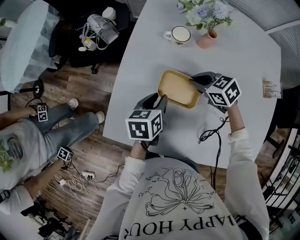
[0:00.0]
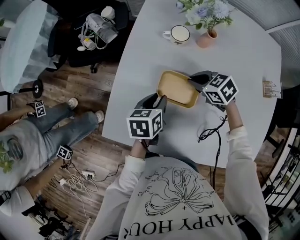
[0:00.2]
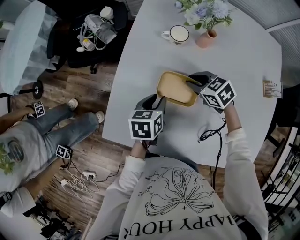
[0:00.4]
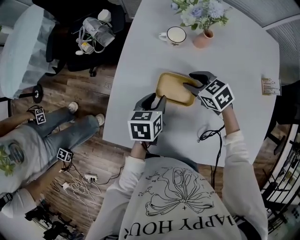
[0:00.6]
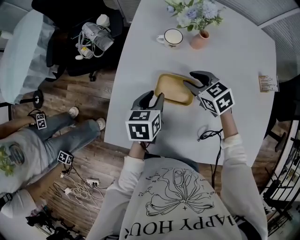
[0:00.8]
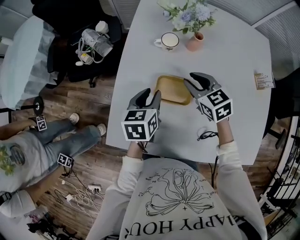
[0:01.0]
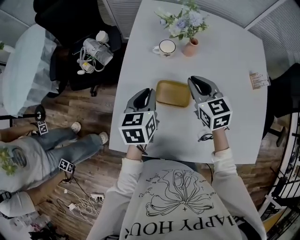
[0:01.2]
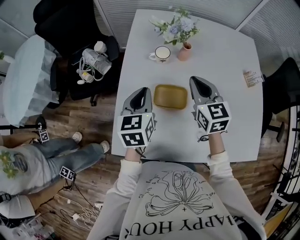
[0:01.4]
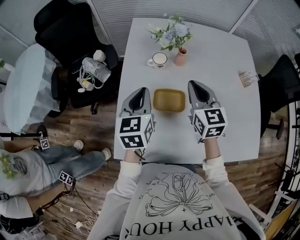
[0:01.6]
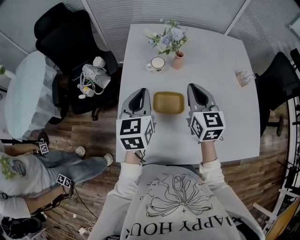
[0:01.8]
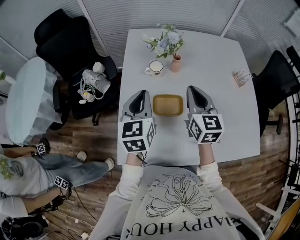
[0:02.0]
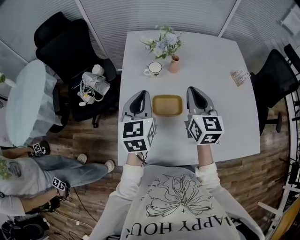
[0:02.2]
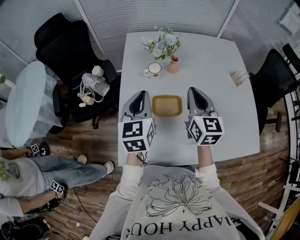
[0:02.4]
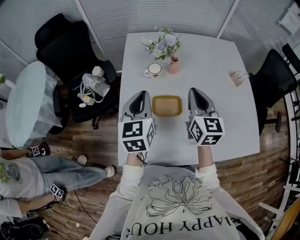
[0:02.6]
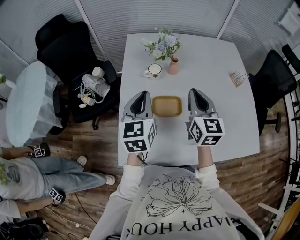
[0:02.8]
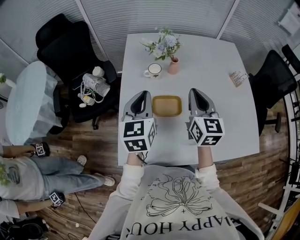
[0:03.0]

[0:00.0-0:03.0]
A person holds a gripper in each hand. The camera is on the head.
0.0 to 1.6 s: The grippers both shift upward by some 20 cm. The left gripper swivels approximately 30 degrees, and closes, while the right gripper tips its fingers upward by roughly 30 degrees, and opens, then closes again.
1.6 to 3.0 s: The left gripper travels upward by about 5 cm. Meanwhile the right gripper changes place by roughly 5 cm.

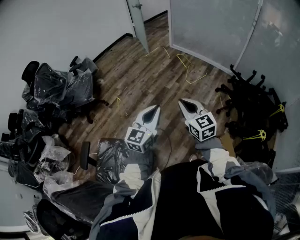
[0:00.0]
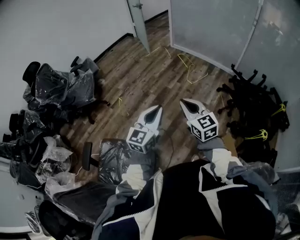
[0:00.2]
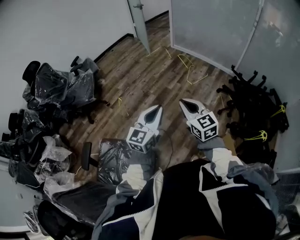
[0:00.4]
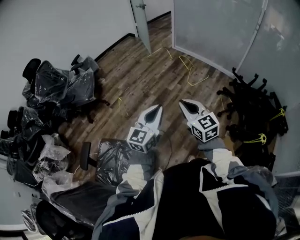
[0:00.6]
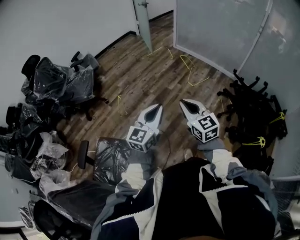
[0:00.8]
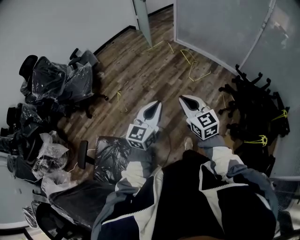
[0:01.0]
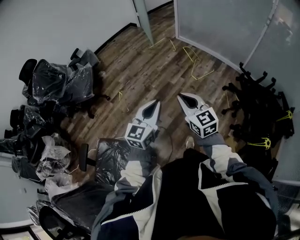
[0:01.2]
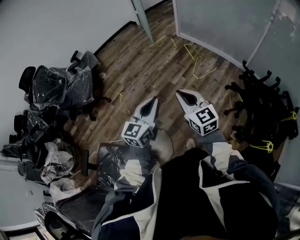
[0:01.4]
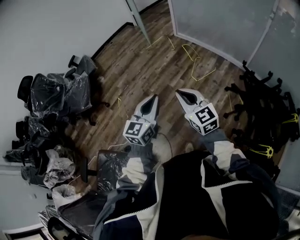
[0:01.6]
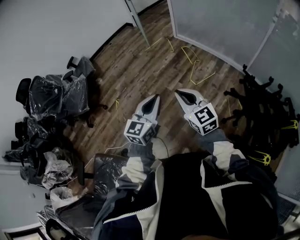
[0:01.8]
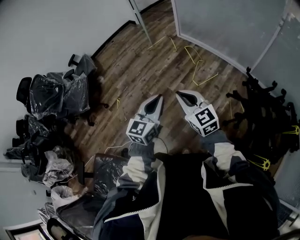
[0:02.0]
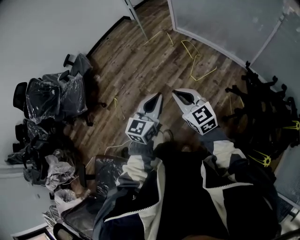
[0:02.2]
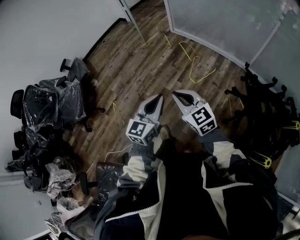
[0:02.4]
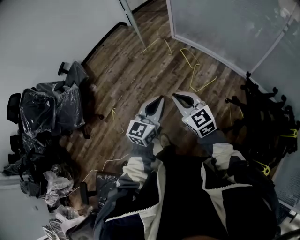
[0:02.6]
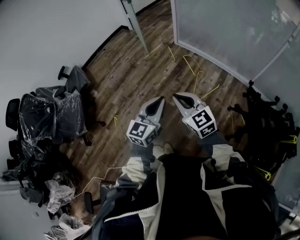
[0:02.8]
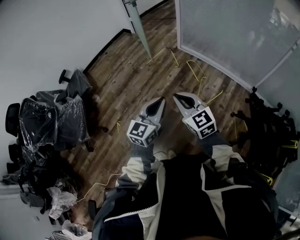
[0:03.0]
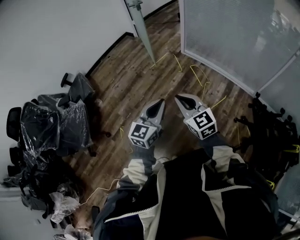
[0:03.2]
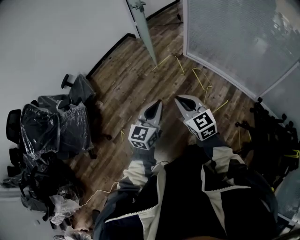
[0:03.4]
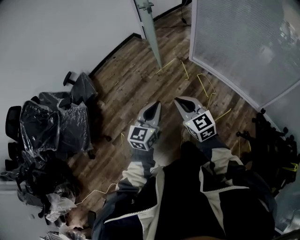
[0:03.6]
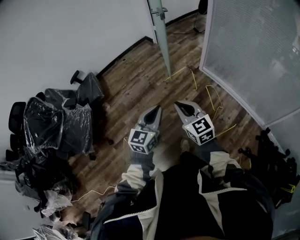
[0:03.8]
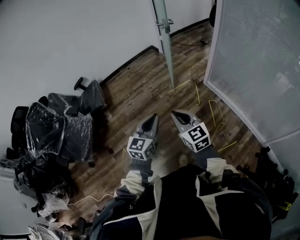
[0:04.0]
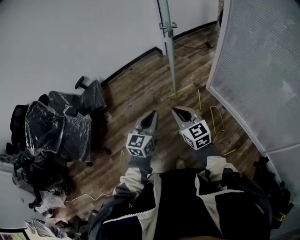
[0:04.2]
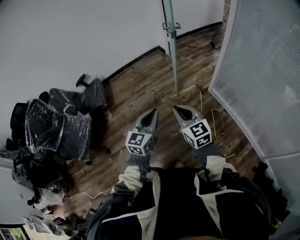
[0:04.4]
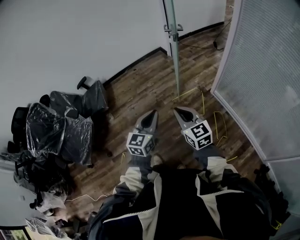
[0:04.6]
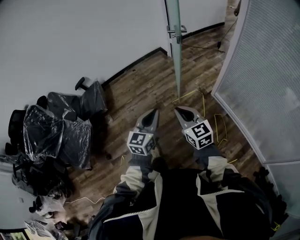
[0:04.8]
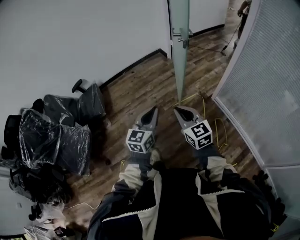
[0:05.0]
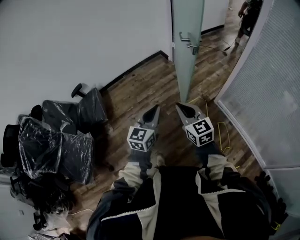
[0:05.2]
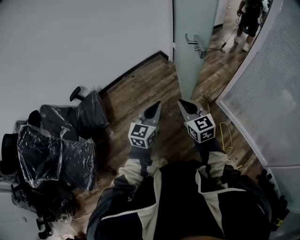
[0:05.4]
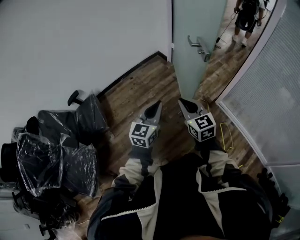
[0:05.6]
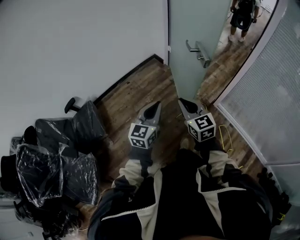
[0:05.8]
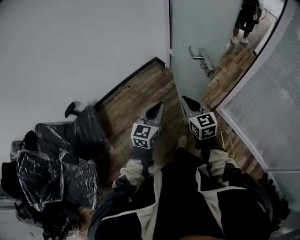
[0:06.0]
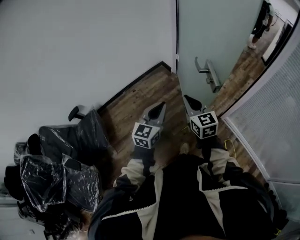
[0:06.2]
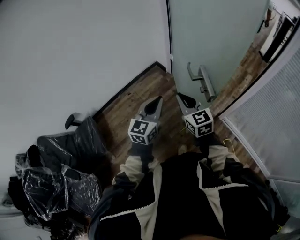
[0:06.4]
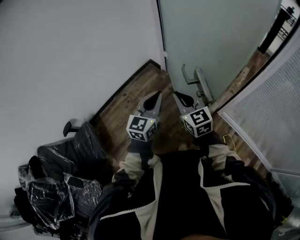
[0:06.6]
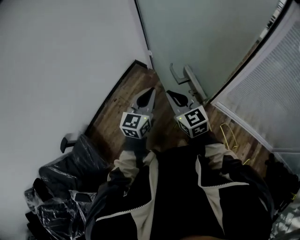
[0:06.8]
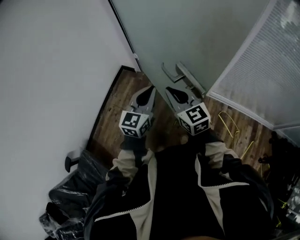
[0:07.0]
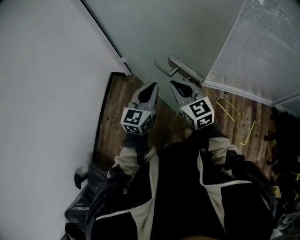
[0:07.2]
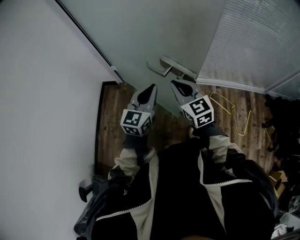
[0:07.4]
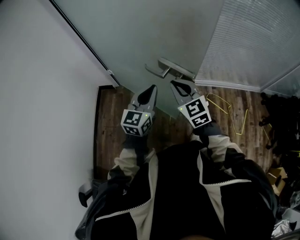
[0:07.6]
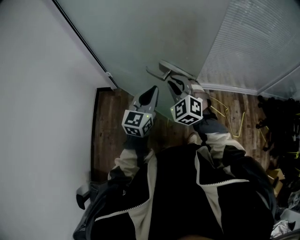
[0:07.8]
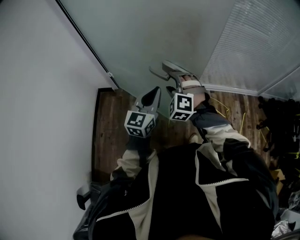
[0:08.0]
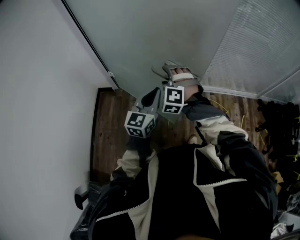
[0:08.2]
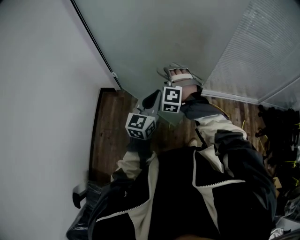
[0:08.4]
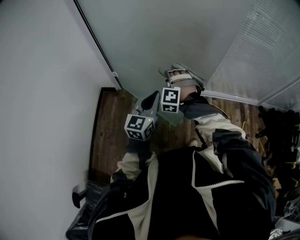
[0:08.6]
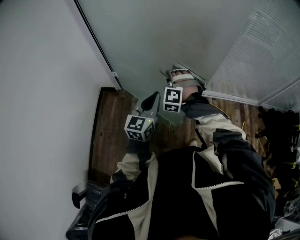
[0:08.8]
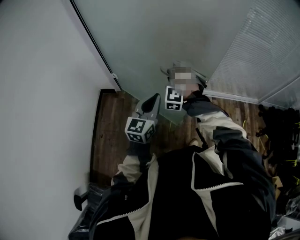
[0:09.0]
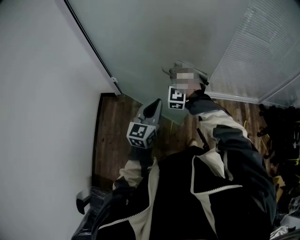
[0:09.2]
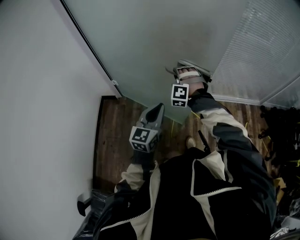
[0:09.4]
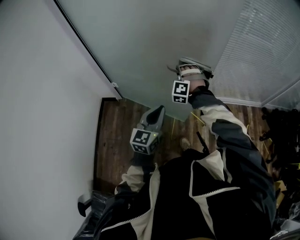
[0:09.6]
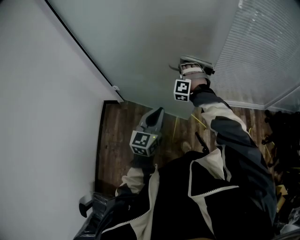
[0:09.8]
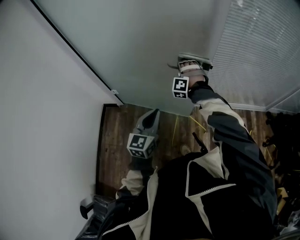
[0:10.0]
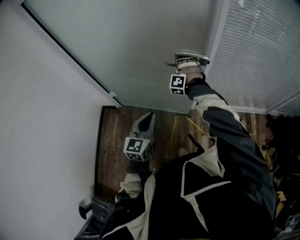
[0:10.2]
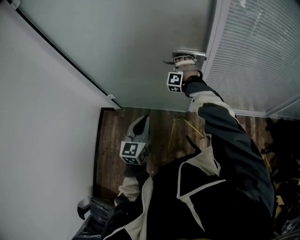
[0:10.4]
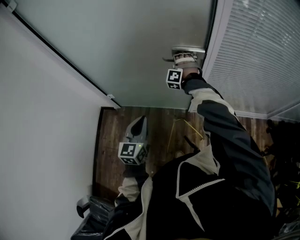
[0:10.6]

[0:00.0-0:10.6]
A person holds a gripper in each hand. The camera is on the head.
0.0 to 1.6 s: The left gripper goes approximately 25 cm forward and to the right, while the right gripper heads forward, covering approximately 25 cm.
1.6 to 3.0 s: Both grippers move forward, roughly 35 cm.
3.0 to 4.6 s: The pair of grippers is taken forward, approximately 40 cm. The left gripper changes its angle by about 30 degrees.
4.6 to 6.0 s: Both grippers are carried forward, some 40 cm.
6.0 to 7.6 s: The right gripper changes place by approximately 20 cm, and turns by approximately 40 degrees, while the left gripper shifts by roughly 25 cm, and changes its angle by roughly 50 degrees.
7.6 to 9.0 s: The right gripper travels forward, to the left and downward by about 15 cm, twists roughly 70 degrees counterclockwise, seen from behind, and opens up.
9.0 to 10.6 s: The right gripper shifts roughly 40 cm forward, while the left gripper goes some 20 cm forward.

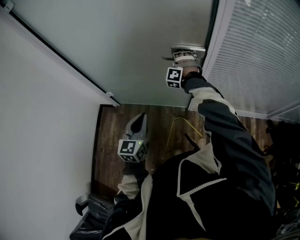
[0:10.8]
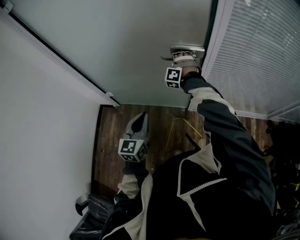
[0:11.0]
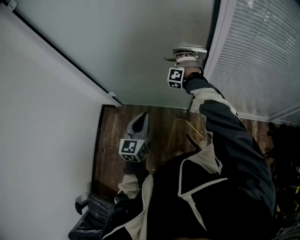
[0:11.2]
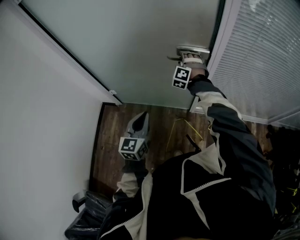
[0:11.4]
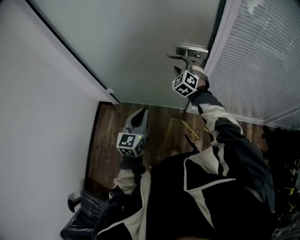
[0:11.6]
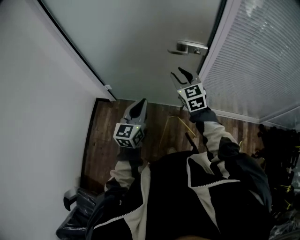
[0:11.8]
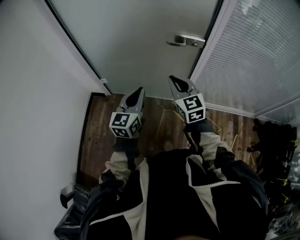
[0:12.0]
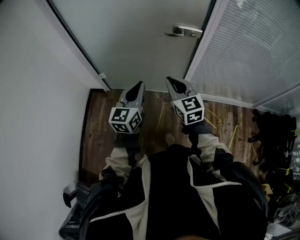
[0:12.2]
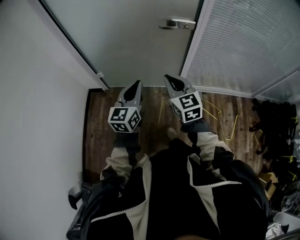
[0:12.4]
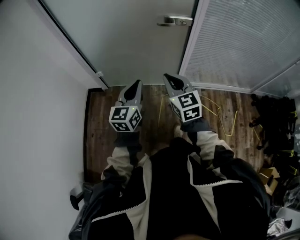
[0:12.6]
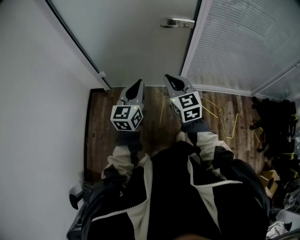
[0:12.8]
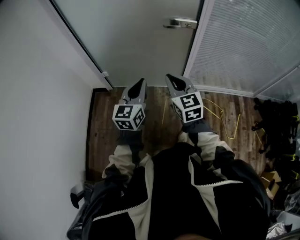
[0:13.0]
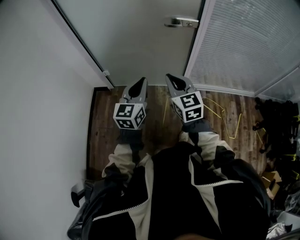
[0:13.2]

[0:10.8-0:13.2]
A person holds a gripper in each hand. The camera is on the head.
10.8 to 12.0 s: The left gripper moves some 5 cm, while the right gripper travels backward by some 30 cm, rolls clockwise, seen from behind, by roughly 80 degrees, and opens, then closes once more.
12.0 to 13.2 s: The grippers both shift backward by approximately 10 cm.

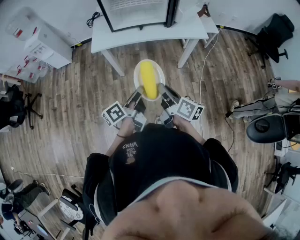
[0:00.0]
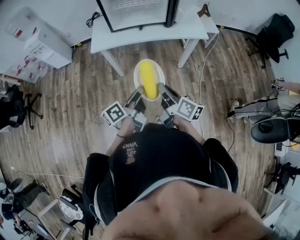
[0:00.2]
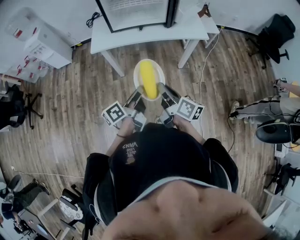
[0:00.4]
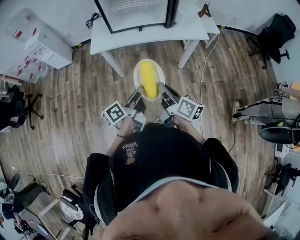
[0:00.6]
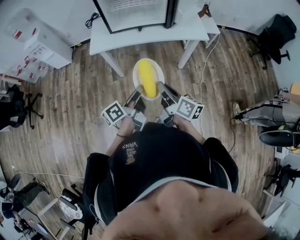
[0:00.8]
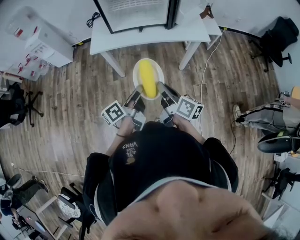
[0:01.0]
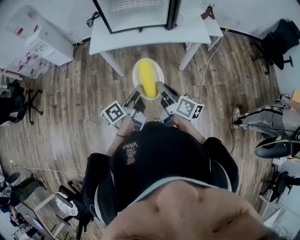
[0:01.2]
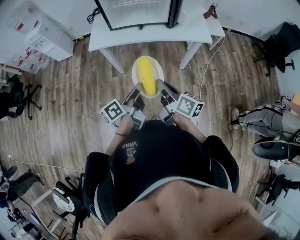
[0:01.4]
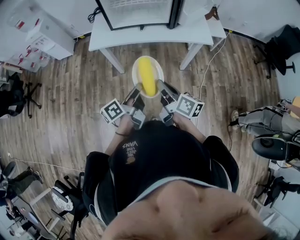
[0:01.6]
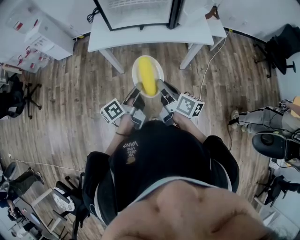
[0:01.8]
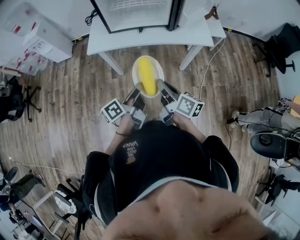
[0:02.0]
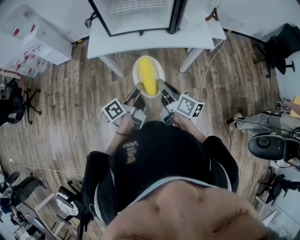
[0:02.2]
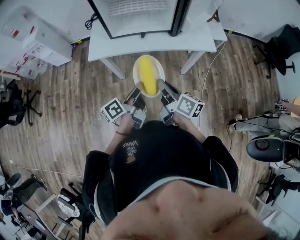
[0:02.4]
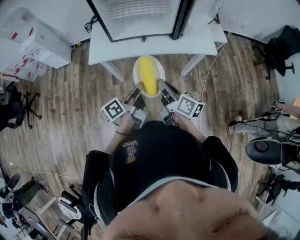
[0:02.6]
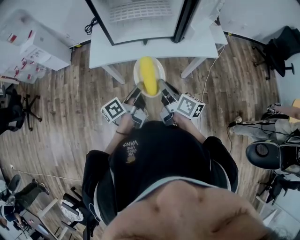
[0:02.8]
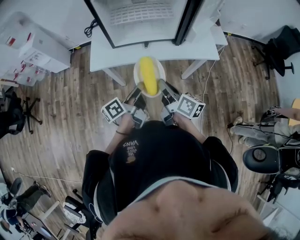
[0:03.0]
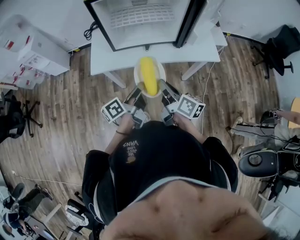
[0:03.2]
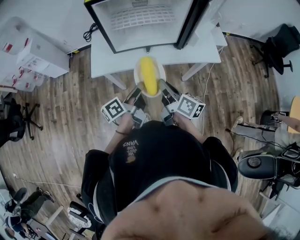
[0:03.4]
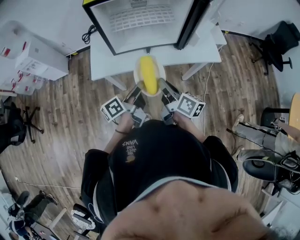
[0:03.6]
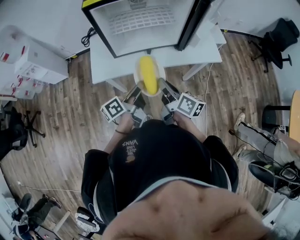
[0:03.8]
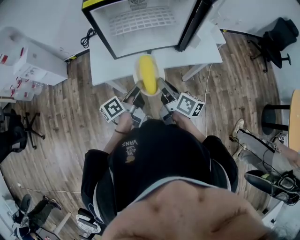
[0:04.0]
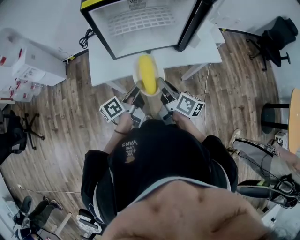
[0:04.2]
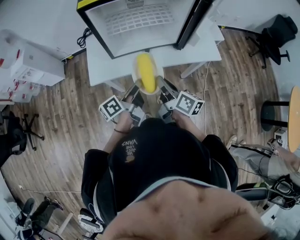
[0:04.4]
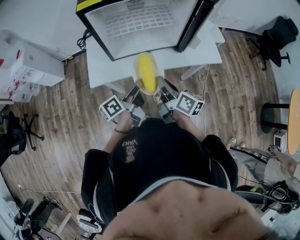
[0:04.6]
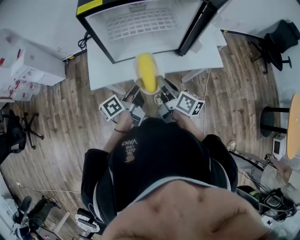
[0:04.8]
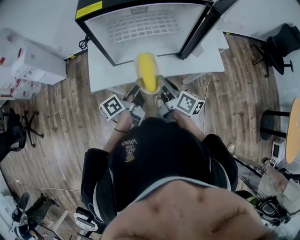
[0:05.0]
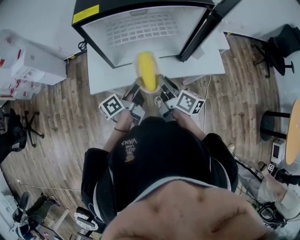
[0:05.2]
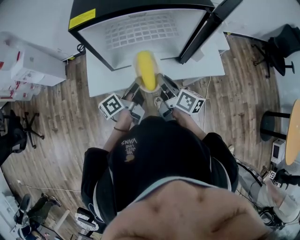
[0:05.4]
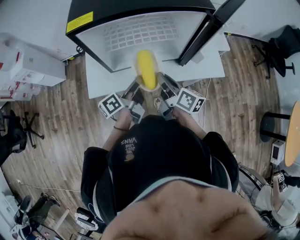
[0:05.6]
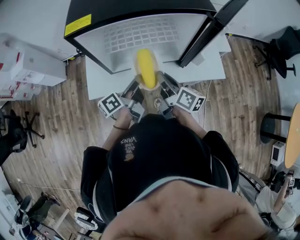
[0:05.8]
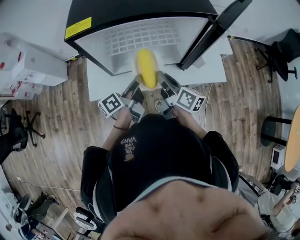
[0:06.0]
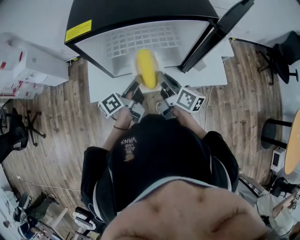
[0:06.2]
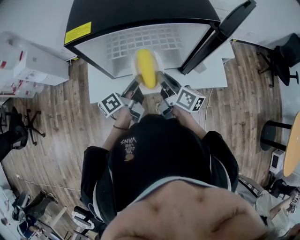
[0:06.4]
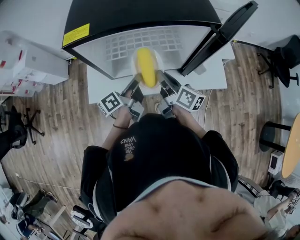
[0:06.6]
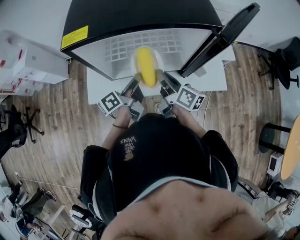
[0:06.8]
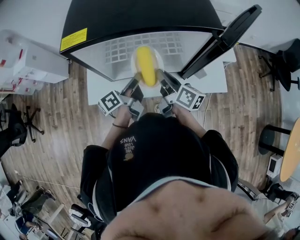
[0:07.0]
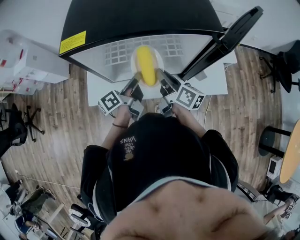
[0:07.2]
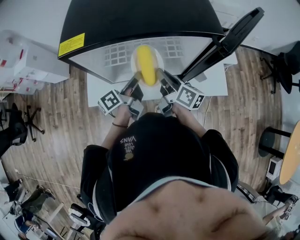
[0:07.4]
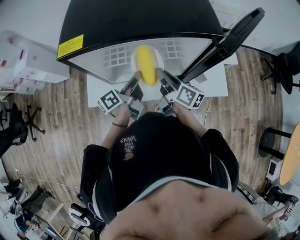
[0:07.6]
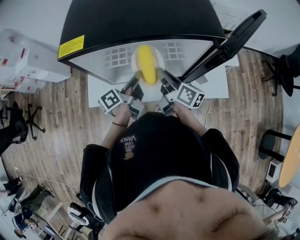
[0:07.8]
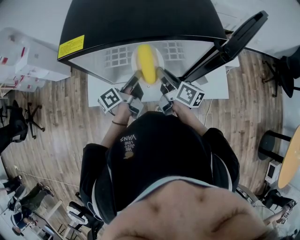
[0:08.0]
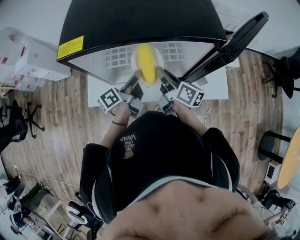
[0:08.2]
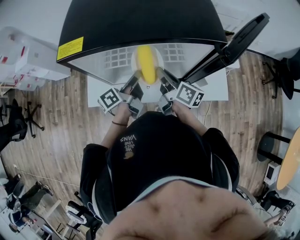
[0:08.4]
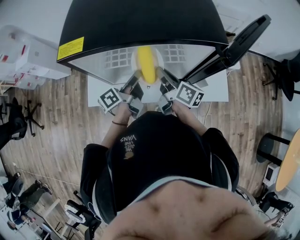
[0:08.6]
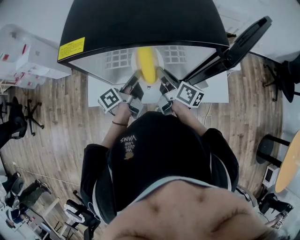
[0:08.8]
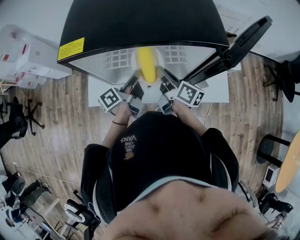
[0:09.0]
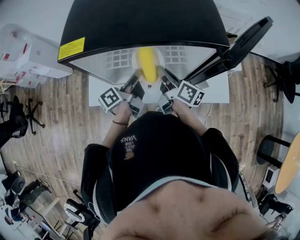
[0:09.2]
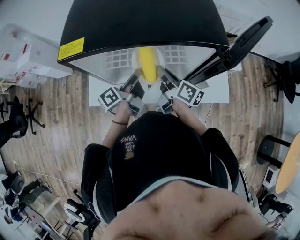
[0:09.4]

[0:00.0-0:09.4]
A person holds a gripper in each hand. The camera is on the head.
0.0 to 1.6 s: The two grippers go approximately 5 cm forward.
1.6 to 3.2 s: Both grippers move forward, some 15 cm.
3.2 to 4.8 s: Both grippers travel together forward, approximately 10 cm.
4.8 to 6.2 s: Both grippers move forward, about 10 cm.
6.2 to 7.8 s: The grippers both shift forward by roughly 5 cm.
7.8 to 9.4 s: The grippers make only small movements.
